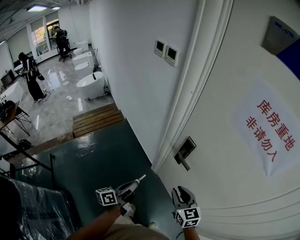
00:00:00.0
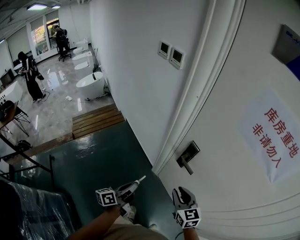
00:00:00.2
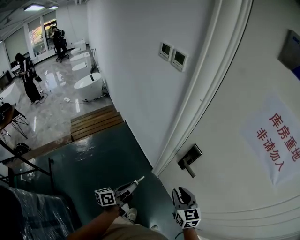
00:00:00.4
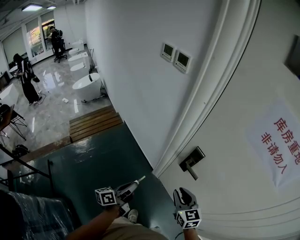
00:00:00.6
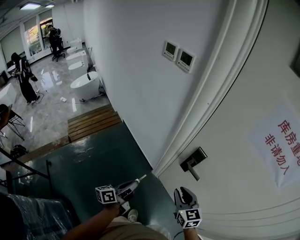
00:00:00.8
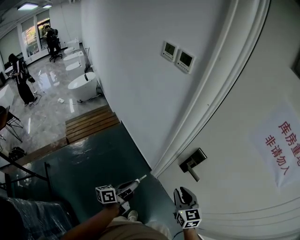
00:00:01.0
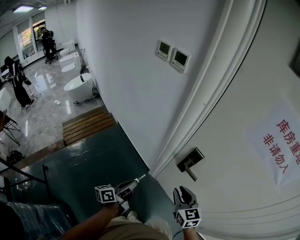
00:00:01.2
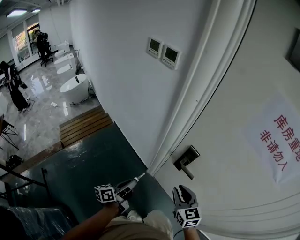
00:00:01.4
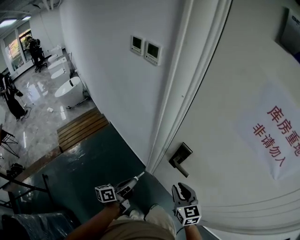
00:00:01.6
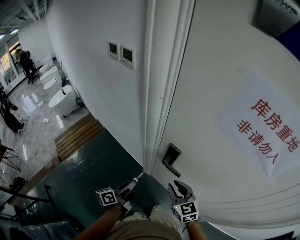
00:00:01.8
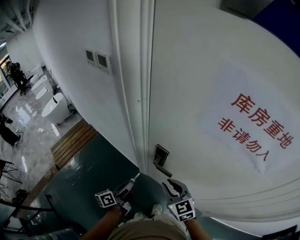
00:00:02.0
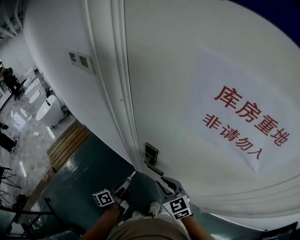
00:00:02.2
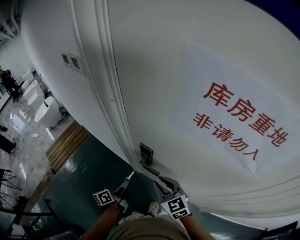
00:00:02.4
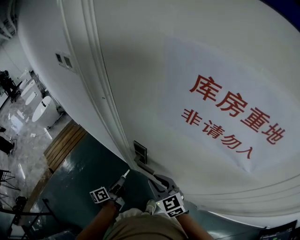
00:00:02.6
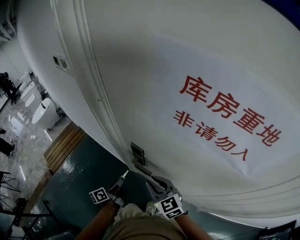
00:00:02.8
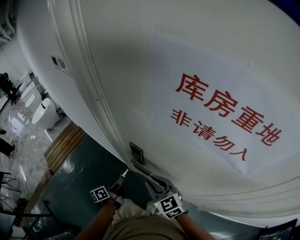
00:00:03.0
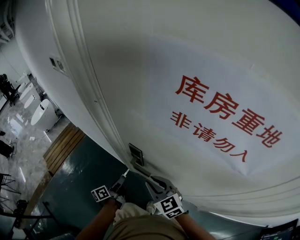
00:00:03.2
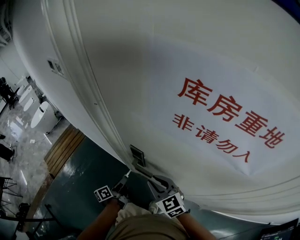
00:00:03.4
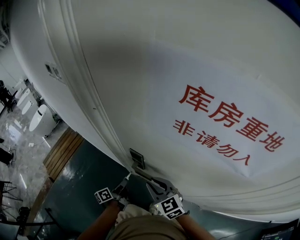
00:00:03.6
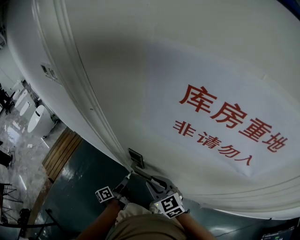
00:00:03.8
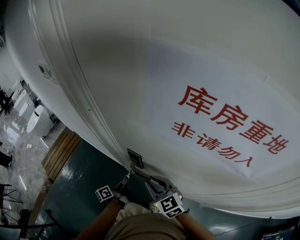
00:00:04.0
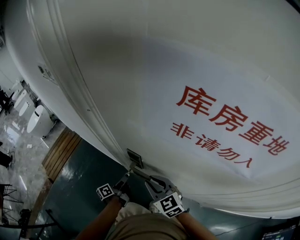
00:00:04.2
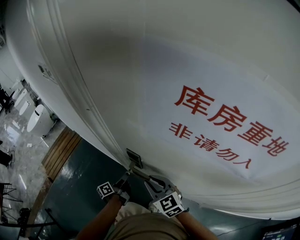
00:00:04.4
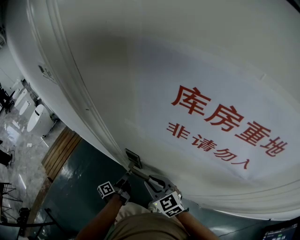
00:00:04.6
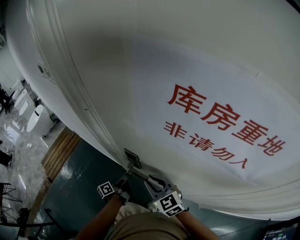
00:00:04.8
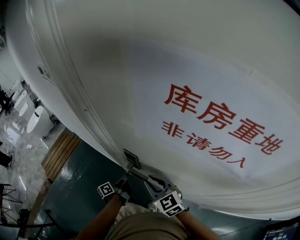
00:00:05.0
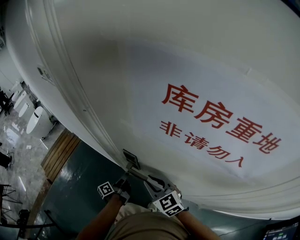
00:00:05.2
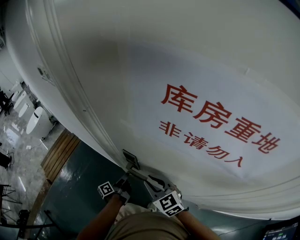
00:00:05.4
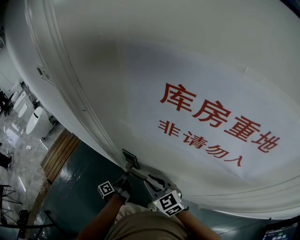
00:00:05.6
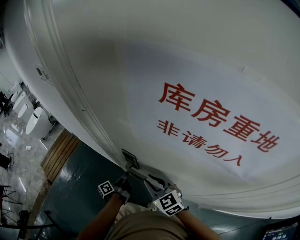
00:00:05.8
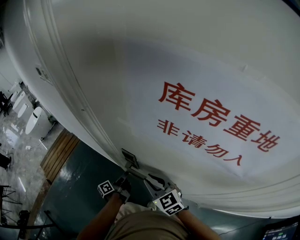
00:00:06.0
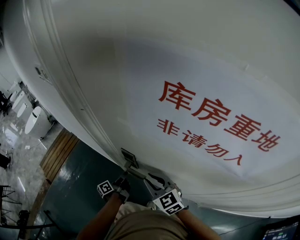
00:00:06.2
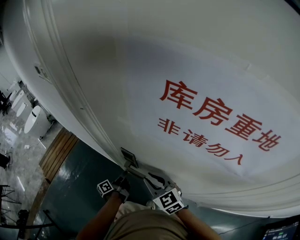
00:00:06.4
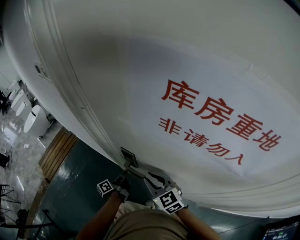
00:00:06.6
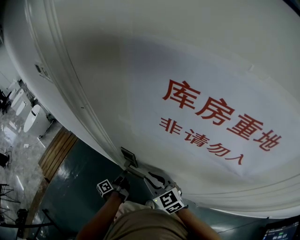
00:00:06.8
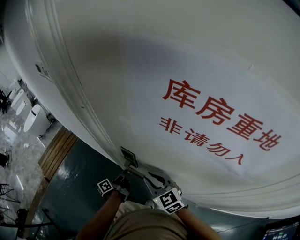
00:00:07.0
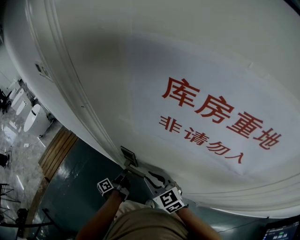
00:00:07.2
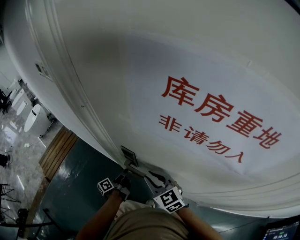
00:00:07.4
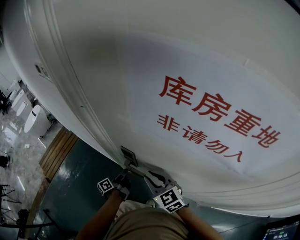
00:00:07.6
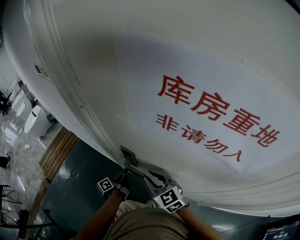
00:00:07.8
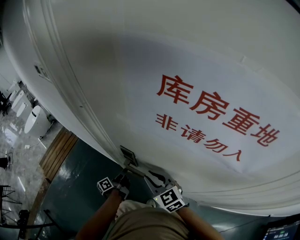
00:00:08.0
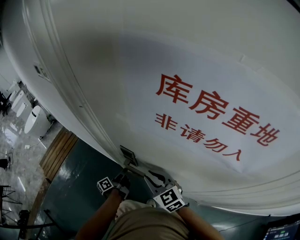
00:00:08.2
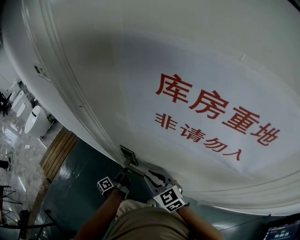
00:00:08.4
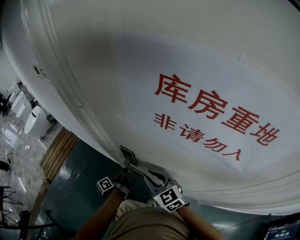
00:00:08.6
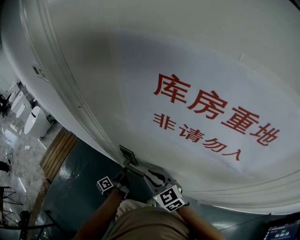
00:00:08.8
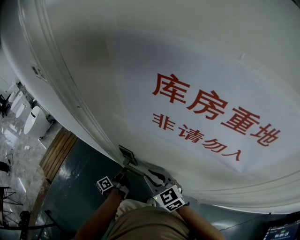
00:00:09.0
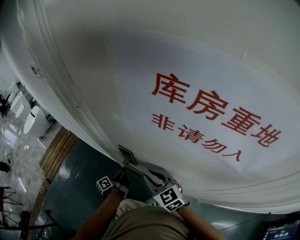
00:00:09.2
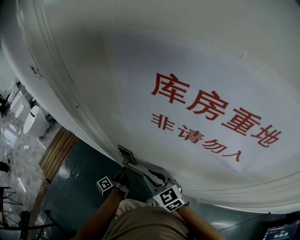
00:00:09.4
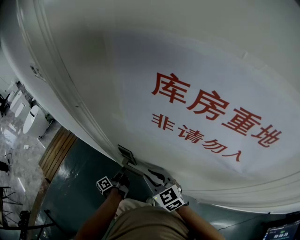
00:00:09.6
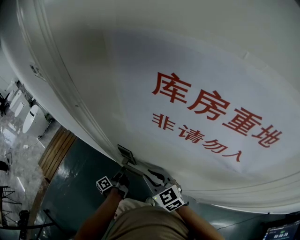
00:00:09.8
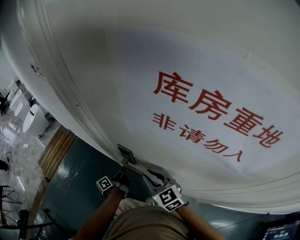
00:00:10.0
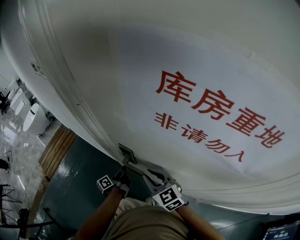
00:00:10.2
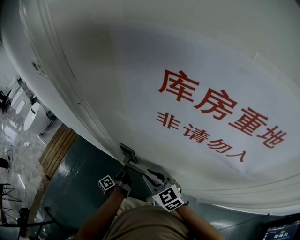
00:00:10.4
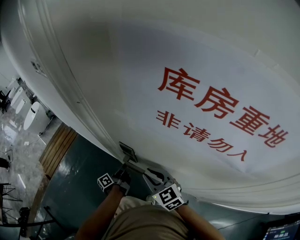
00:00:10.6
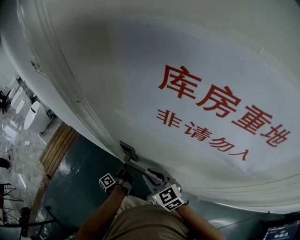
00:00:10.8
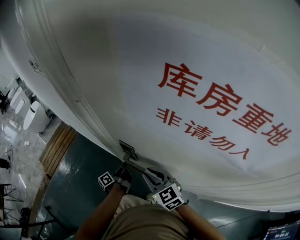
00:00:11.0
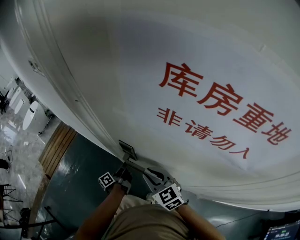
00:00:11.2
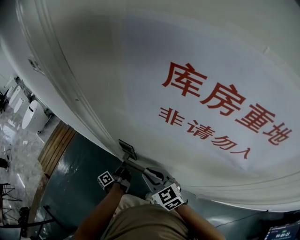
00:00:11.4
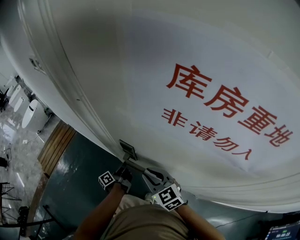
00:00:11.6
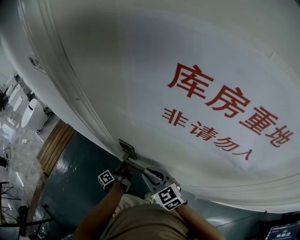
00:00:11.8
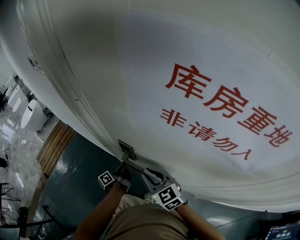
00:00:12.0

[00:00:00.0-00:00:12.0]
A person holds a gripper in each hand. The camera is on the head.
00:00:00.0 to 00:00:01.6: The two grippers go some 10 cm forward.
00:00:01.6 to 00:00:03.0: The right gripper moves to the right, approximately 5 cm; the left gripper heads to the right, forward and downward, covering approximately 15 cm.
00:00:03.0 to 00:00:04.4: The left gripper heads forward, covering about 5 cm.
00:00:04.4 to 00:00:06.0: The grippers make only small movements.
00:00:06.0 to 00:00:07.6: Both grippers stay about where they are.
00:00:07.6 to 00:00:10.4: Both grippers stay about where they are.
00:00:10.4 to 00:00:12.0: The two grippers keep their place.

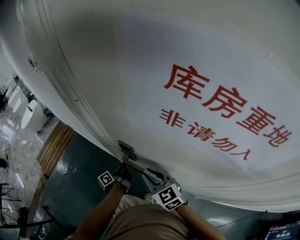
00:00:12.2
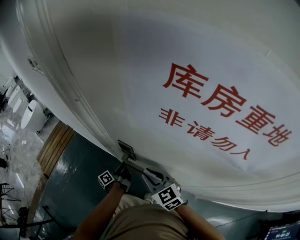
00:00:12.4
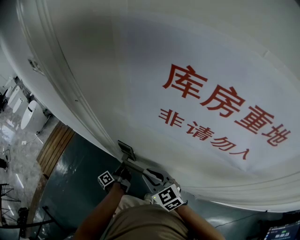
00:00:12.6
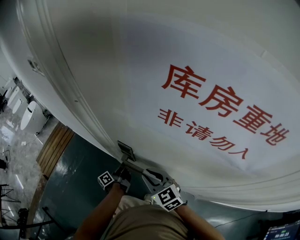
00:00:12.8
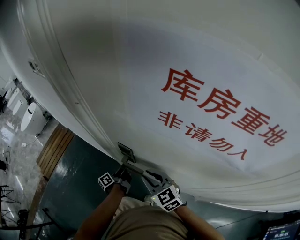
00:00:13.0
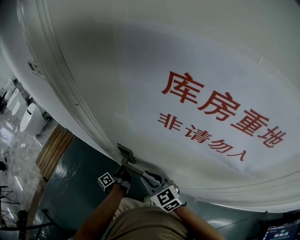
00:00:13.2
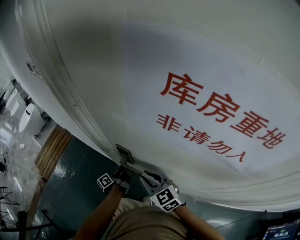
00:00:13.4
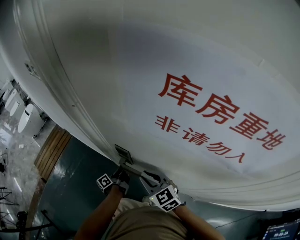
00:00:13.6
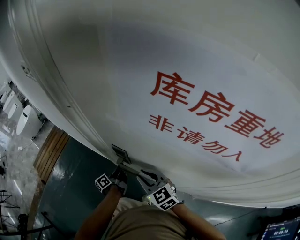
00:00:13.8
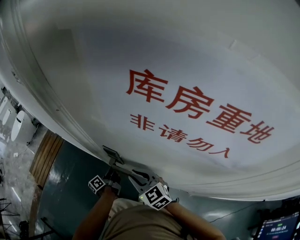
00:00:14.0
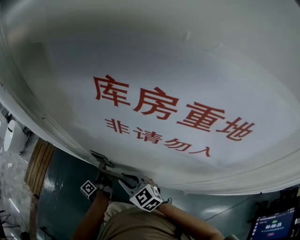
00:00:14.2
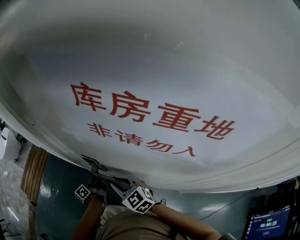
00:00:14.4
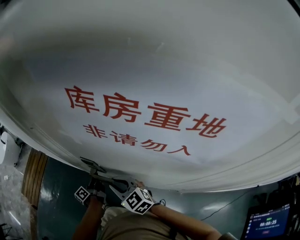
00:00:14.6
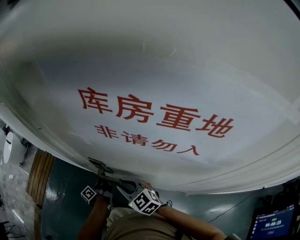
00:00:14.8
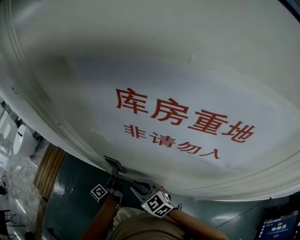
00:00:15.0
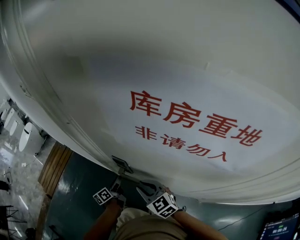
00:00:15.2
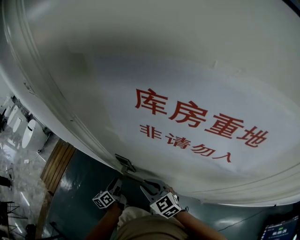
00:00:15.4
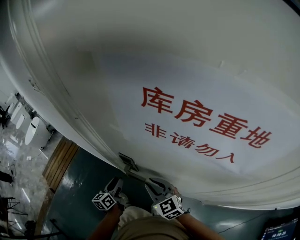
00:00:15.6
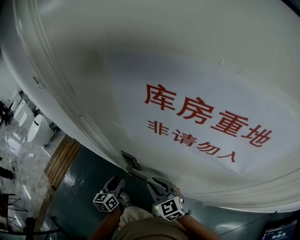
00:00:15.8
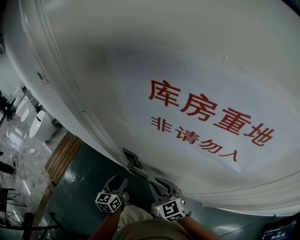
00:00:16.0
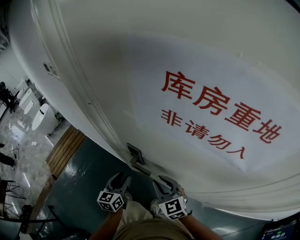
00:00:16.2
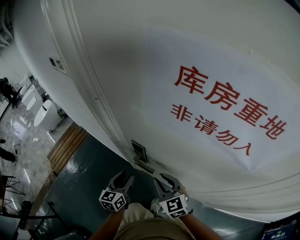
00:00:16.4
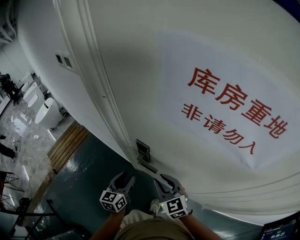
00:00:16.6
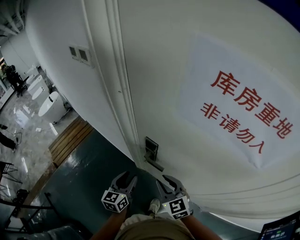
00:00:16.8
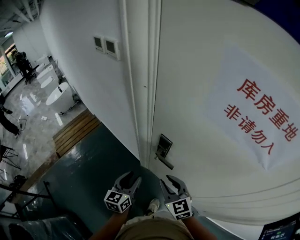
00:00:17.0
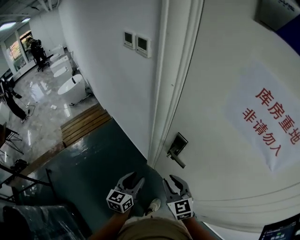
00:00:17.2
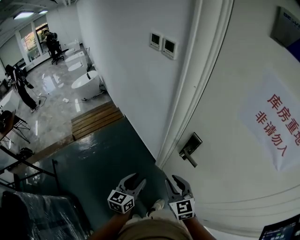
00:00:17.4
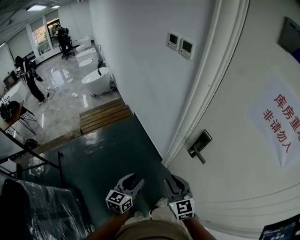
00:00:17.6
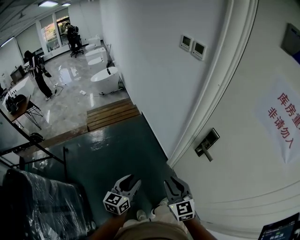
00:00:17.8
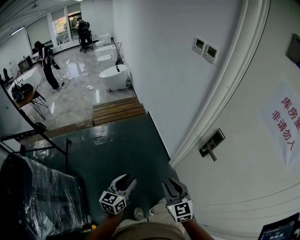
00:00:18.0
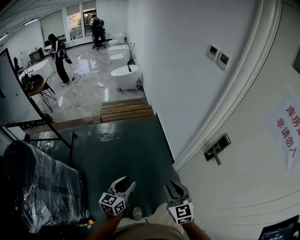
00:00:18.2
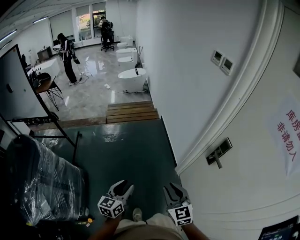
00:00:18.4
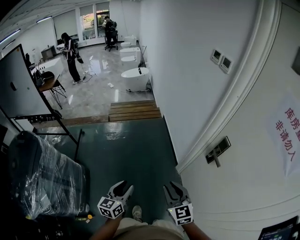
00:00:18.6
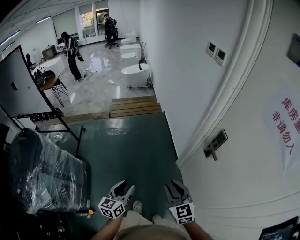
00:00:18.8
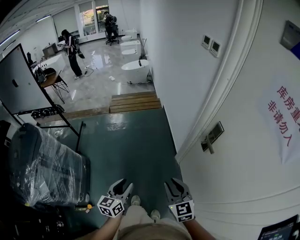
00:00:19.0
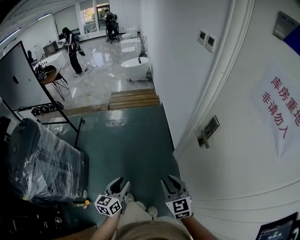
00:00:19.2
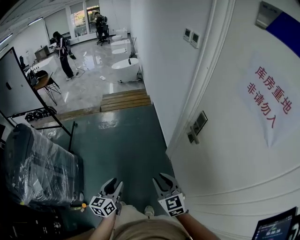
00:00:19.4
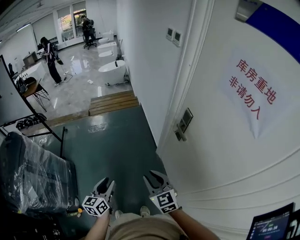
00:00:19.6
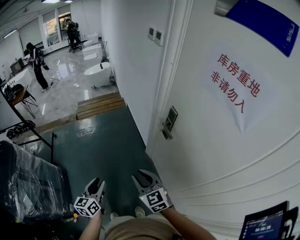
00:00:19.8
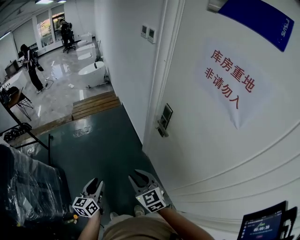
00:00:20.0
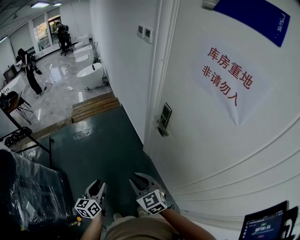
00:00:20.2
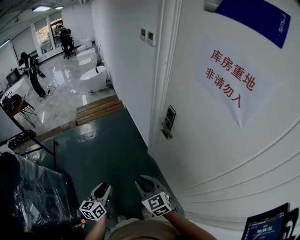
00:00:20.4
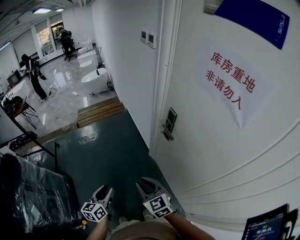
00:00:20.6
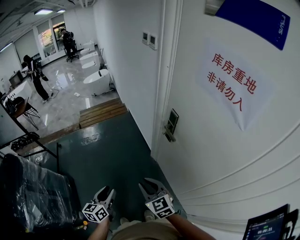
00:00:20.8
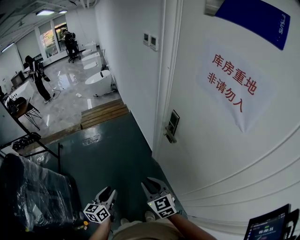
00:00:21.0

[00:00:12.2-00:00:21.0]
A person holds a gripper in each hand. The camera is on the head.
00:00:12.2 to 00:00:13.6: Neither gripper changes place.
00:00:13.6 to 00:00:15.2: The left gripper swivels about 20 degrees, and opens up.
00:00:15.2 to 00:00:16.6: The left gripper goes some 15 cm upward and backward, and rotates around the line of its fingers by approximately 40 degrees, clockwise from behind.
00:00:16.6 to 00:00:18.0: The left gripper shifts by about 40 cm, and swivels roughly 30 degrees. Meanwhile the right gripper ends up about 35 cm from where it was, and swivels approximately 30 degrees.
00:00:18.0 to 00:00:19.6: The right gripper goes approximately 15 cm backward and to the right; the left gripper heads backward, covering roughly 20 cm.
00:00:19.6 to 00:00:21.0: The grippers stay close to where they were, moving slightly.

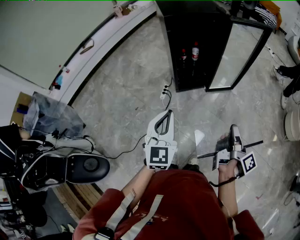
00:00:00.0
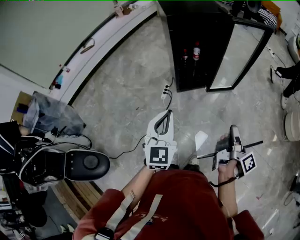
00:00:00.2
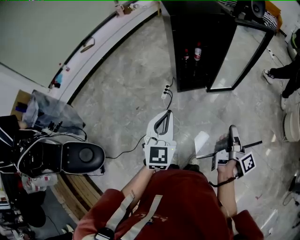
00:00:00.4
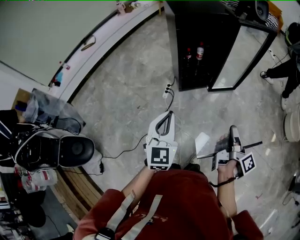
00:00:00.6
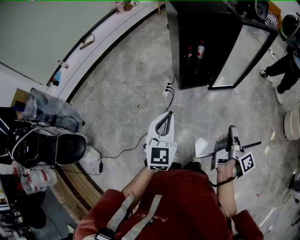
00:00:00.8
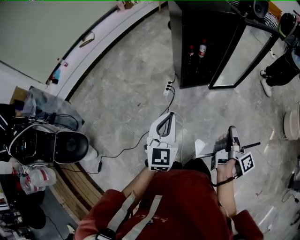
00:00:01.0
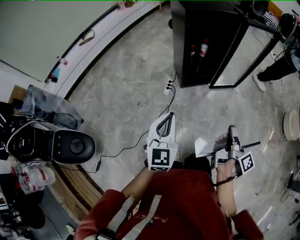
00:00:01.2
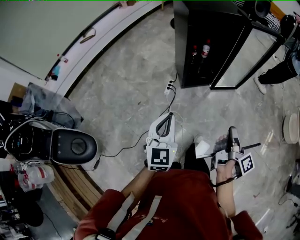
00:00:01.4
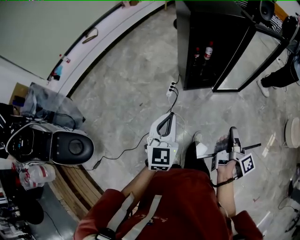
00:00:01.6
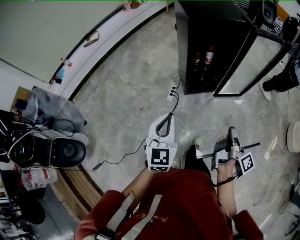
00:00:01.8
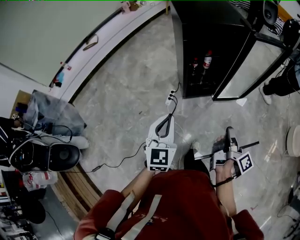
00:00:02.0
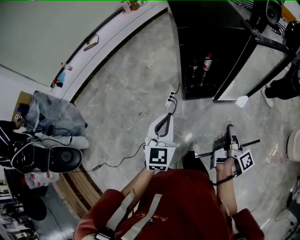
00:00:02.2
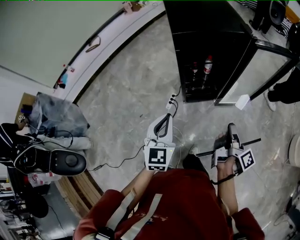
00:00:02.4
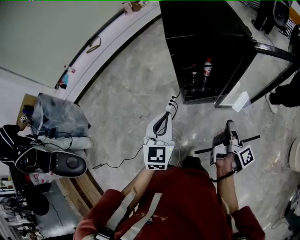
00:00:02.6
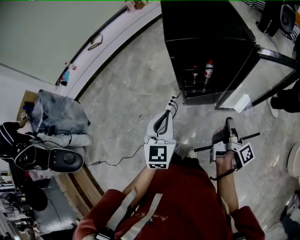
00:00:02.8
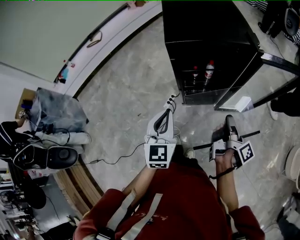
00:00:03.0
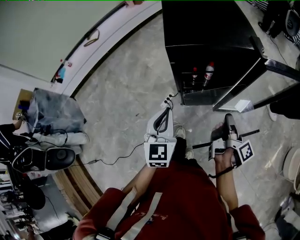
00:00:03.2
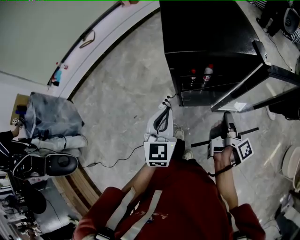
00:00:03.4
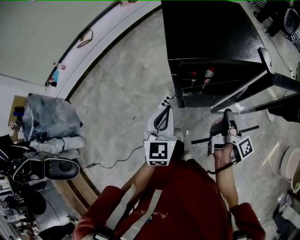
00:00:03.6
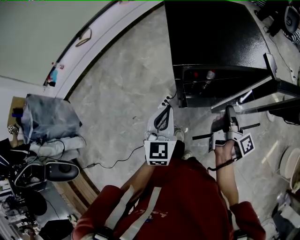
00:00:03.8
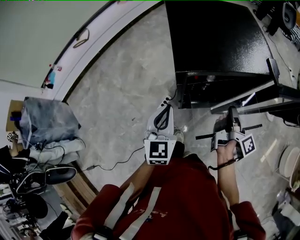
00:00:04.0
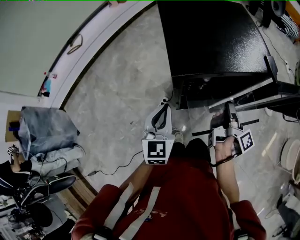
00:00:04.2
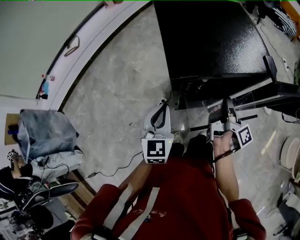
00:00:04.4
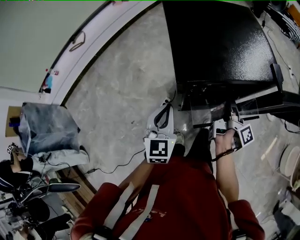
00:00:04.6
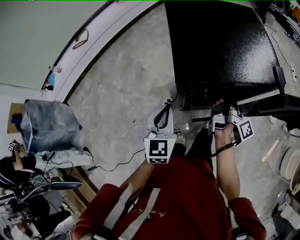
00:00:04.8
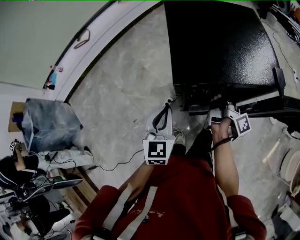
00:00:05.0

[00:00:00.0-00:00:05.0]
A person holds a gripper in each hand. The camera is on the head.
00:00:00.0 to 00:00:01.6: The two grippers go approximately 10 cm to the left.
00:00:01.6 to 00:00:03.4: The grippers both shift forward by approximately 35 cm.
00:00:03.4 to 00:00:05.0: The left gripper moves forward and to the left, about 10 cm; the right gripper travels forward by roughly 20 cm.
